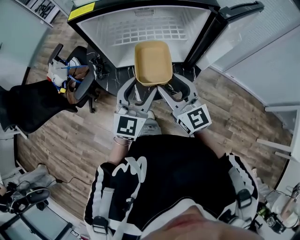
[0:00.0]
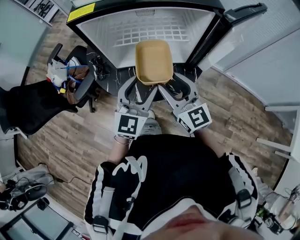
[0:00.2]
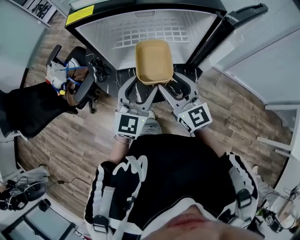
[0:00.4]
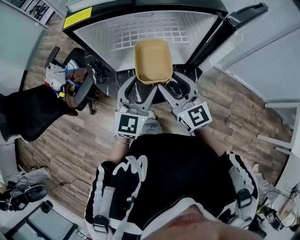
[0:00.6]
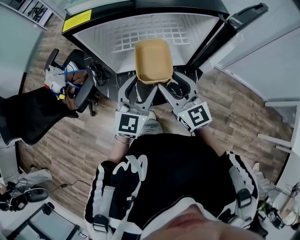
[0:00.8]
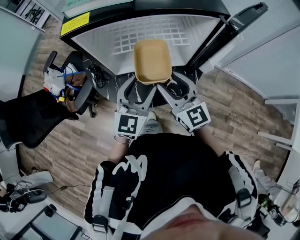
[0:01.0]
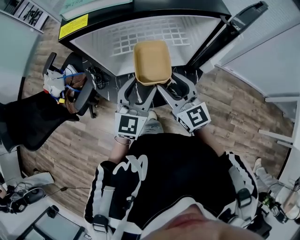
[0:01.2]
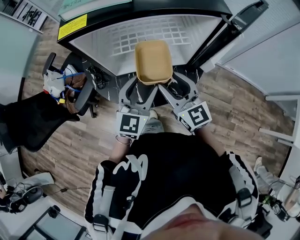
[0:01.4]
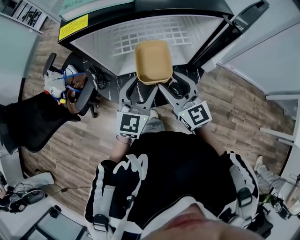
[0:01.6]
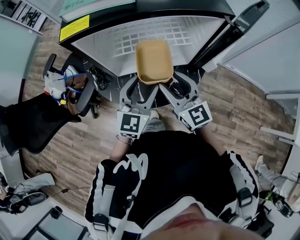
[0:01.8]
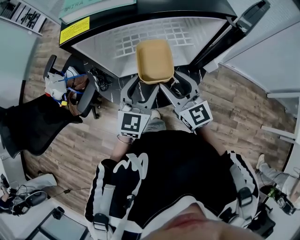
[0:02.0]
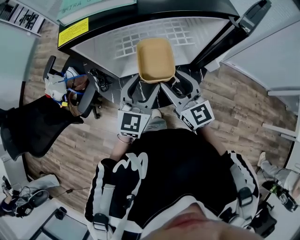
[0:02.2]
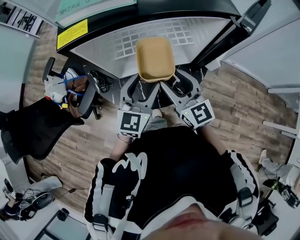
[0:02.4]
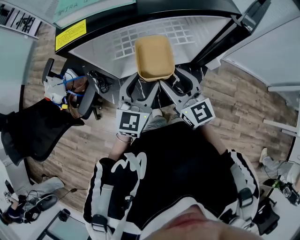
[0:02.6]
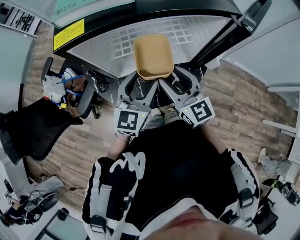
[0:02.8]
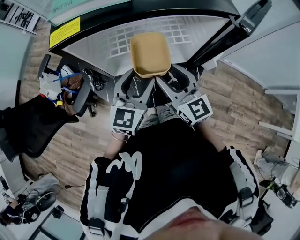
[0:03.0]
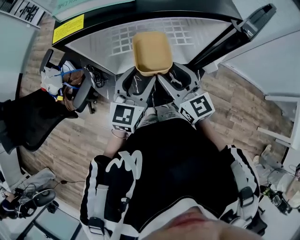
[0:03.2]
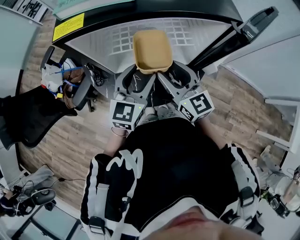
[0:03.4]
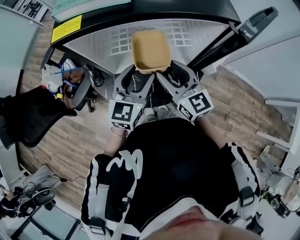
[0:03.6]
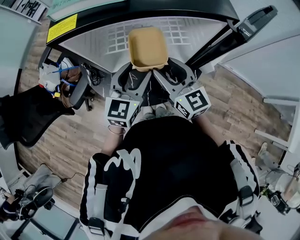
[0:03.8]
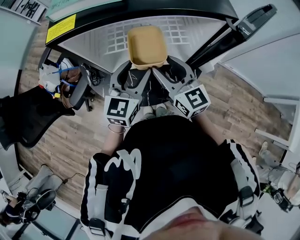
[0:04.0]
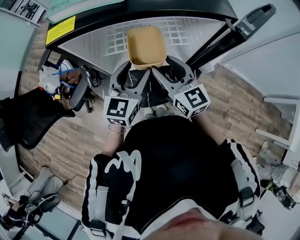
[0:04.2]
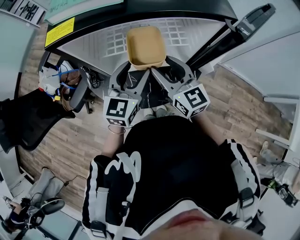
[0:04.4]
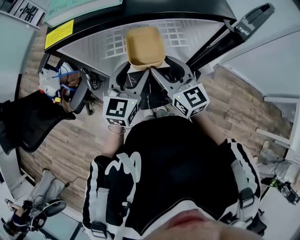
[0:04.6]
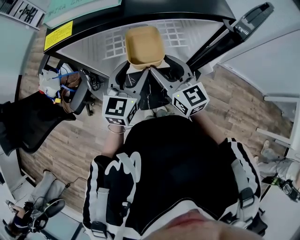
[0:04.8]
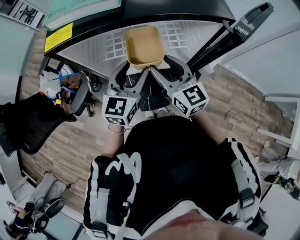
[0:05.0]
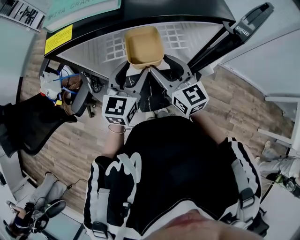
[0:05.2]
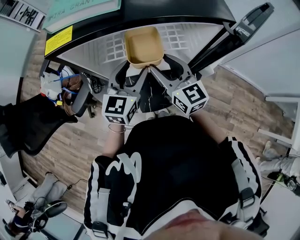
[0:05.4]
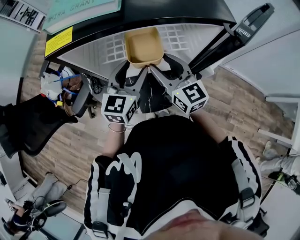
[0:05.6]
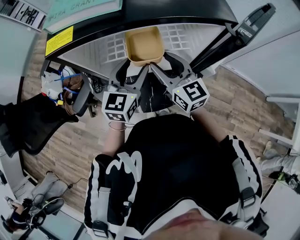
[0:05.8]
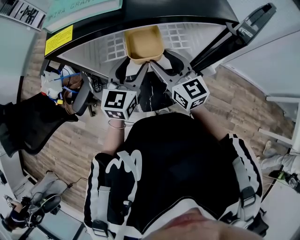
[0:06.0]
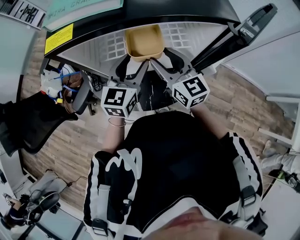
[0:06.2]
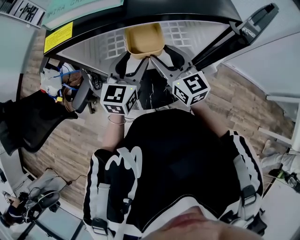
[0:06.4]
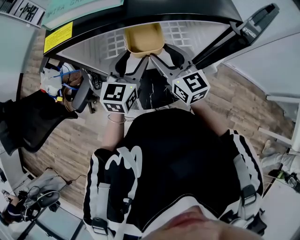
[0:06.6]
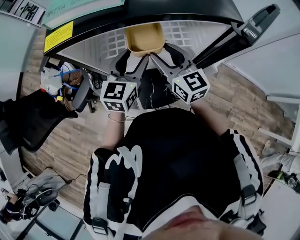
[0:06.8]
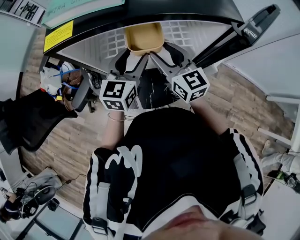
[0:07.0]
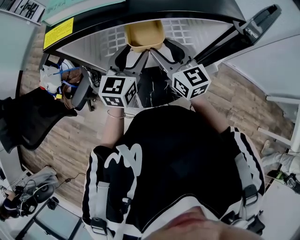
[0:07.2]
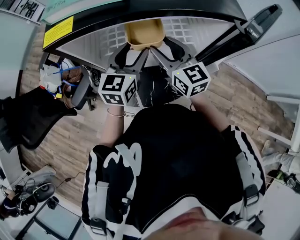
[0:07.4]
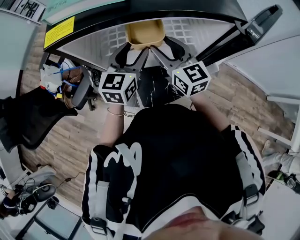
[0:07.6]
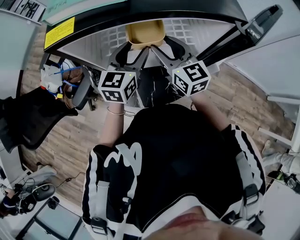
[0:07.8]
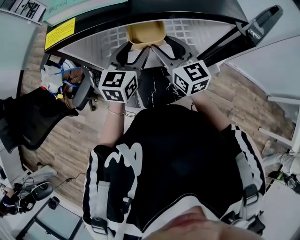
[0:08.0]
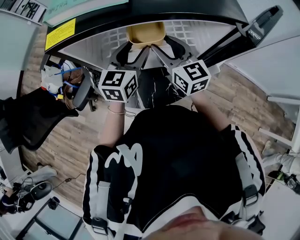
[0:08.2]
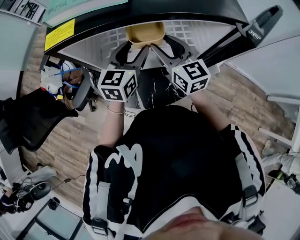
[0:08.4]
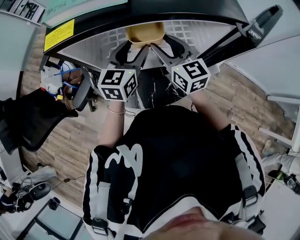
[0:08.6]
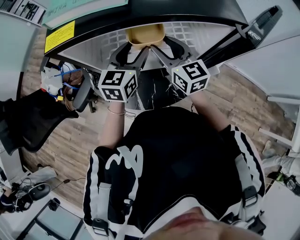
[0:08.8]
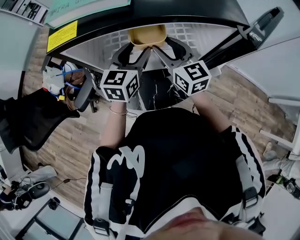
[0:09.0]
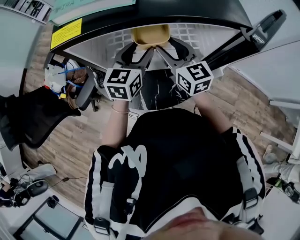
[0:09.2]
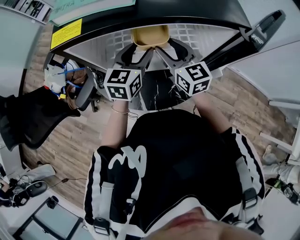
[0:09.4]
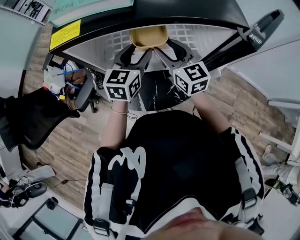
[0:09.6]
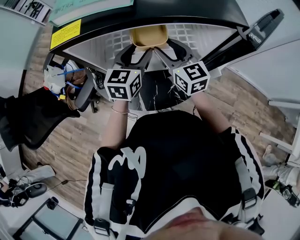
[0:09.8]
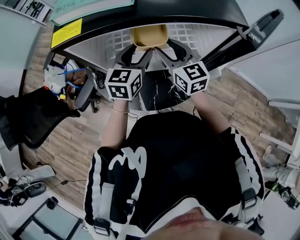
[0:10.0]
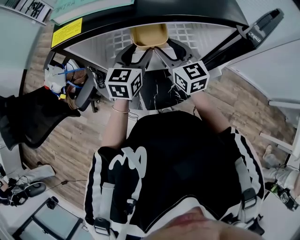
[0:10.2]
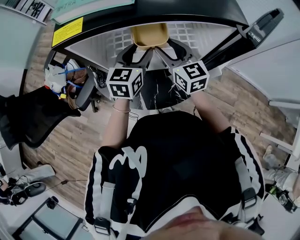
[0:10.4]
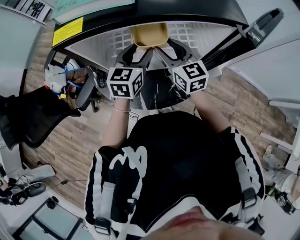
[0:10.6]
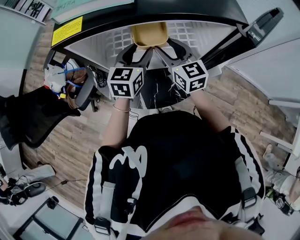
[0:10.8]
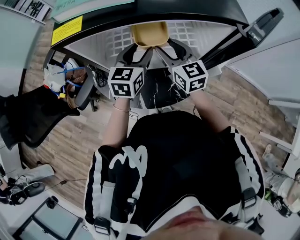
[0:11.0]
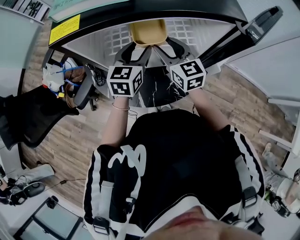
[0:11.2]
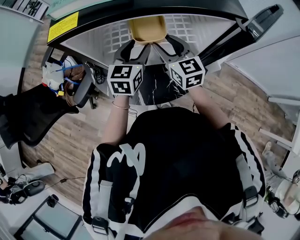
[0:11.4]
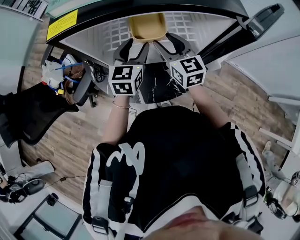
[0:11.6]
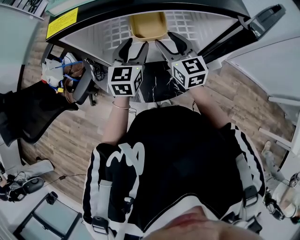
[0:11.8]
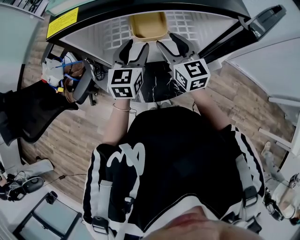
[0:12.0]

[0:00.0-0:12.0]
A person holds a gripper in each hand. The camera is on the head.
0:00.0 to 0:01.6: The grippers both shift forward by some 5 cm.
0:01.6 to 0:03.0: The grippers make only small movements.
0:03.0 to 0:04.4: The grippers make only small movements.
0:04.4 to 0:06.0: There are only small adjustments of the grippers.
0:06.0 to 0:09.0: The grippers move only a little.
0:09.0 to 0:10.4: Both grippers stay put.
0:10.4 to 0:12.0: The grippers make only small movements.

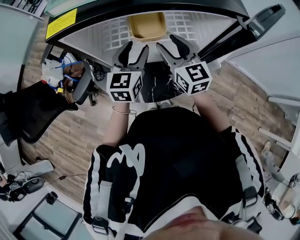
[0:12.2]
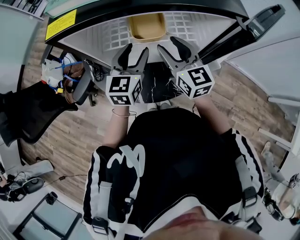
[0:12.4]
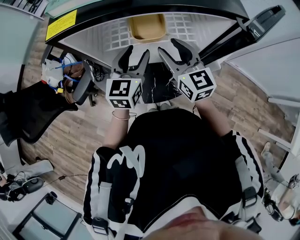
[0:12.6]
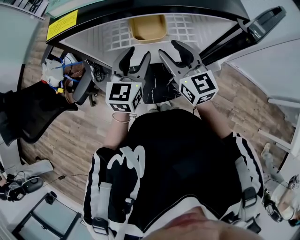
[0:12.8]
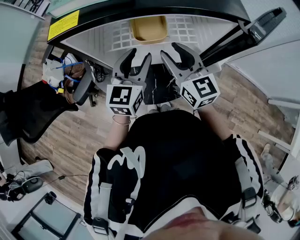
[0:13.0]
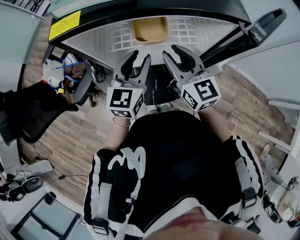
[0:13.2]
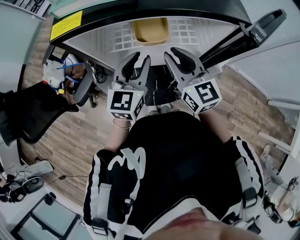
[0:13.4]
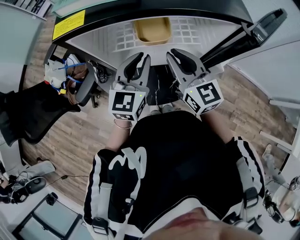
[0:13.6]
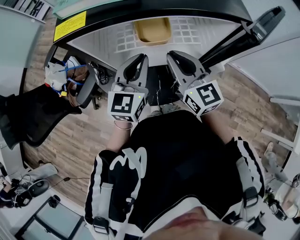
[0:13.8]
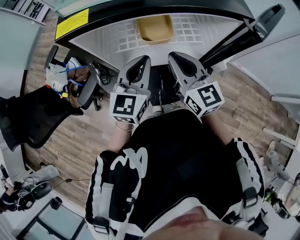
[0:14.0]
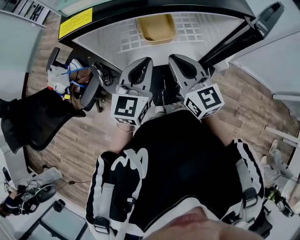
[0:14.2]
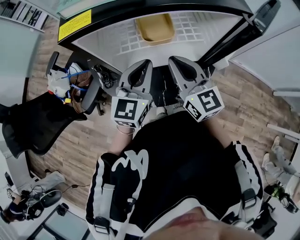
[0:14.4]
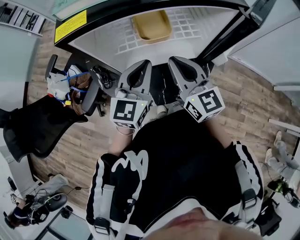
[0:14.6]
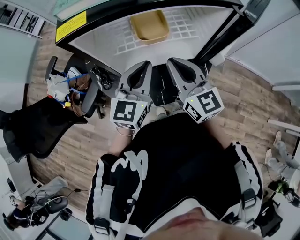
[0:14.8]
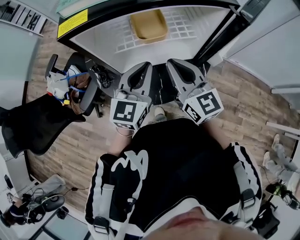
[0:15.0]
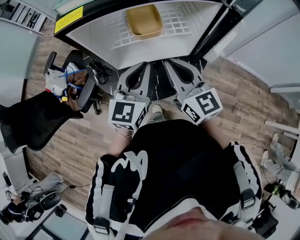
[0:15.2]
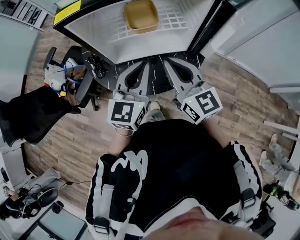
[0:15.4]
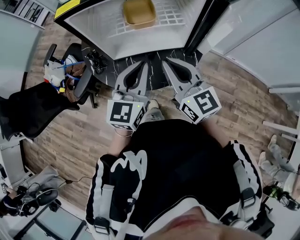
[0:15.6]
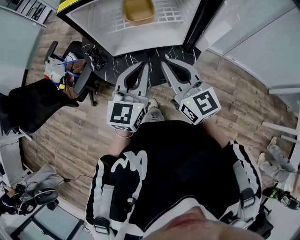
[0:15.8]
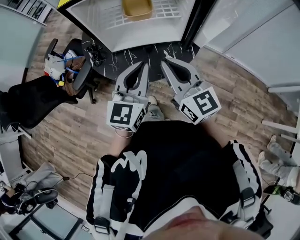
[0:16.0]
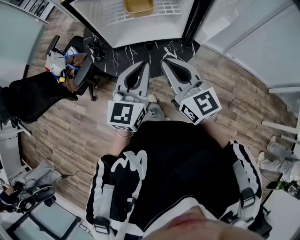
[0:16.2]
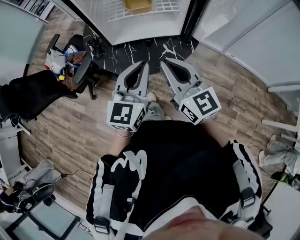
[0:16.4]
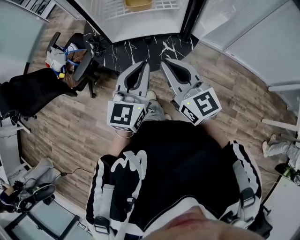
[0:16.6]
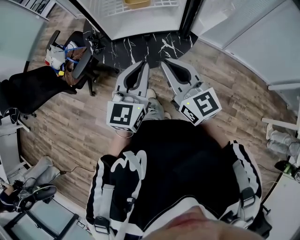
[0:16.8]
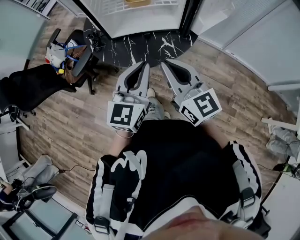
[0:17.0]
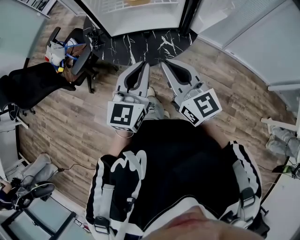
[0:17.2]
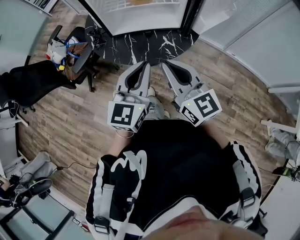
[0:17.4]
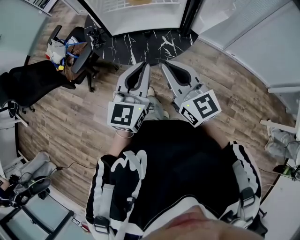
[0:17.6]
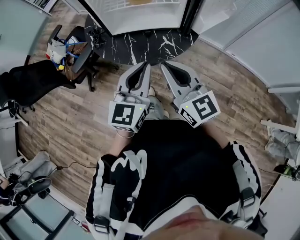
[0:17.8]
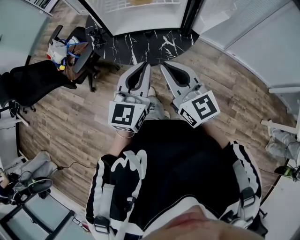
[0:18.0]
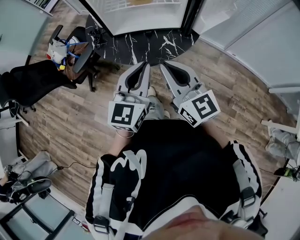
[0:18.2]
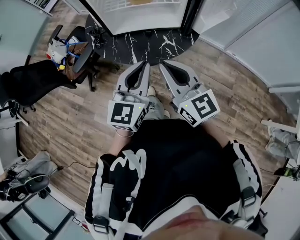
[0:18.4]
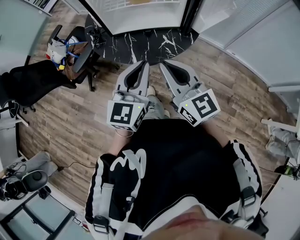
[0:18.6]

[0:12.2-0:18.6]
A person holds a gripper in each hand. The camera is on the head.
0:12.2 to 0:13.8: The left gripper changes place by approximately 5 cm, and closes its fingers. Meanwhile the right gripper travels backward by some 5 cm, and closes.
0:13.8 to 0:15.4: The two grippers go some 10 cm backward.
0:15.4 to 0:17.0: Both grippers travel together backward, some 15 cm.
0:17.0 to 0:18.6: The grippers move only a little.

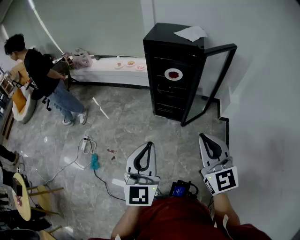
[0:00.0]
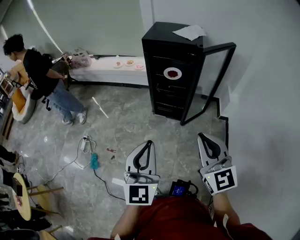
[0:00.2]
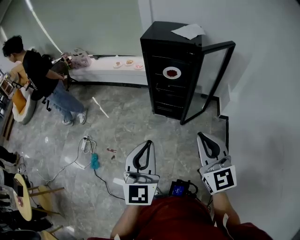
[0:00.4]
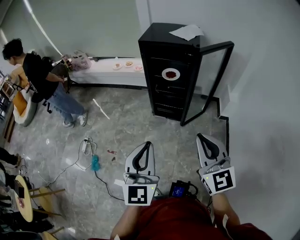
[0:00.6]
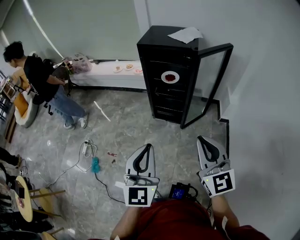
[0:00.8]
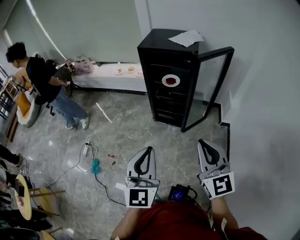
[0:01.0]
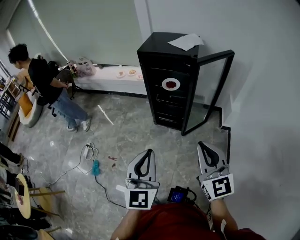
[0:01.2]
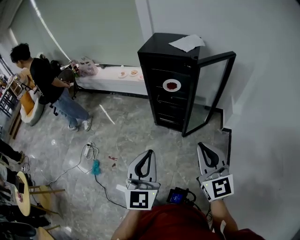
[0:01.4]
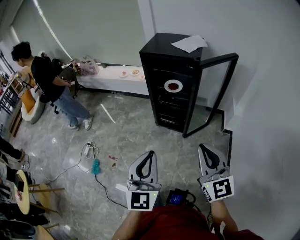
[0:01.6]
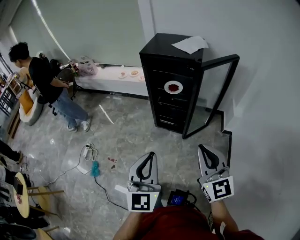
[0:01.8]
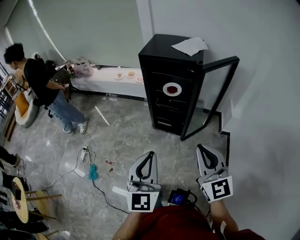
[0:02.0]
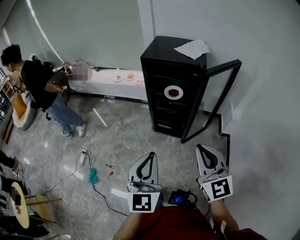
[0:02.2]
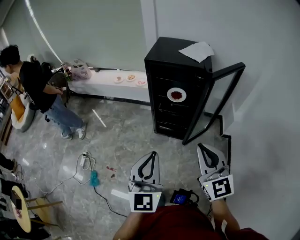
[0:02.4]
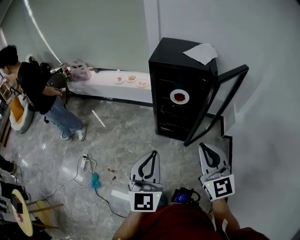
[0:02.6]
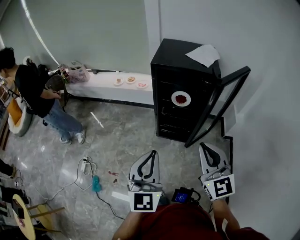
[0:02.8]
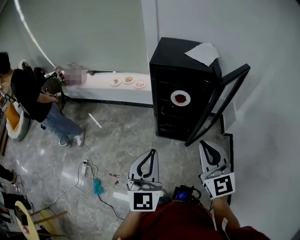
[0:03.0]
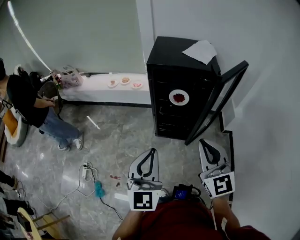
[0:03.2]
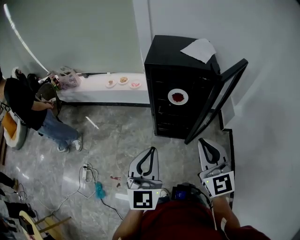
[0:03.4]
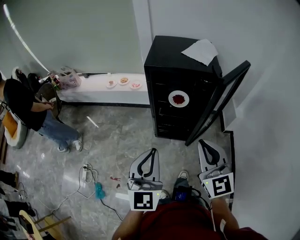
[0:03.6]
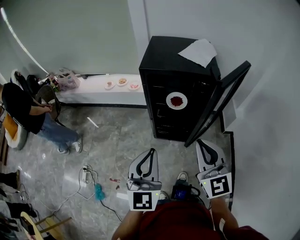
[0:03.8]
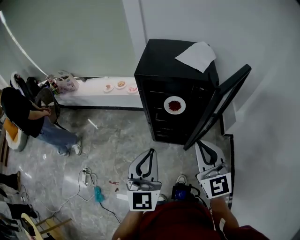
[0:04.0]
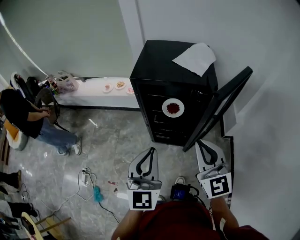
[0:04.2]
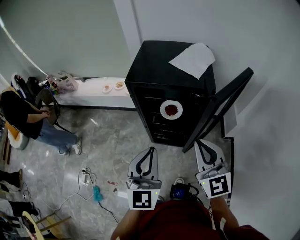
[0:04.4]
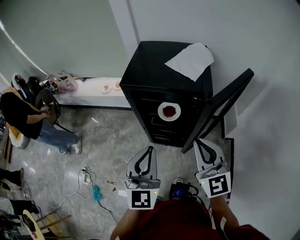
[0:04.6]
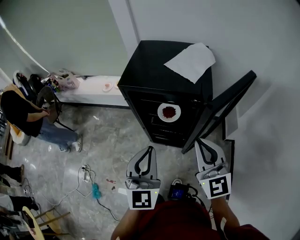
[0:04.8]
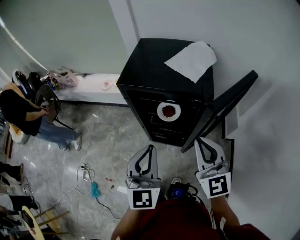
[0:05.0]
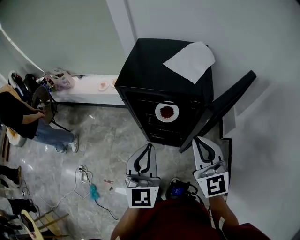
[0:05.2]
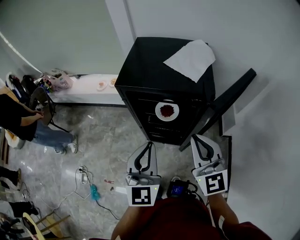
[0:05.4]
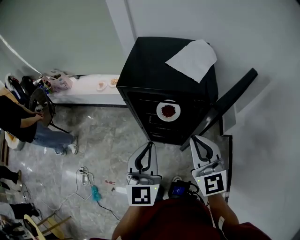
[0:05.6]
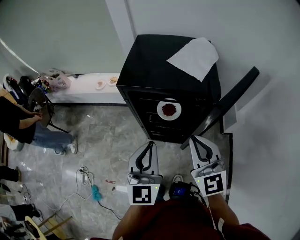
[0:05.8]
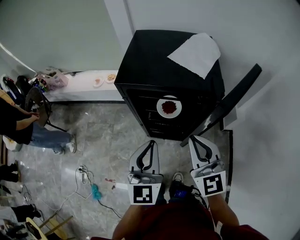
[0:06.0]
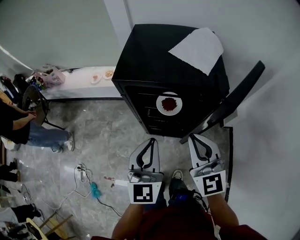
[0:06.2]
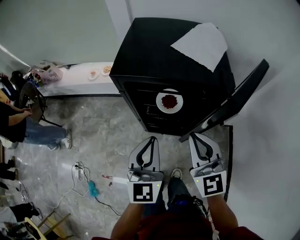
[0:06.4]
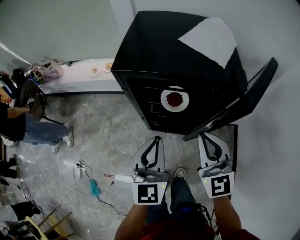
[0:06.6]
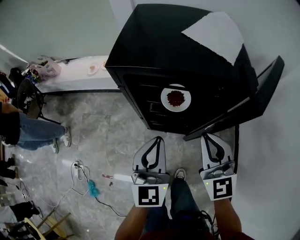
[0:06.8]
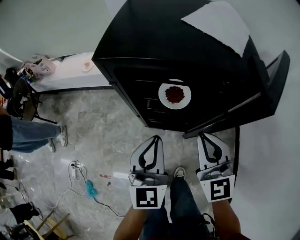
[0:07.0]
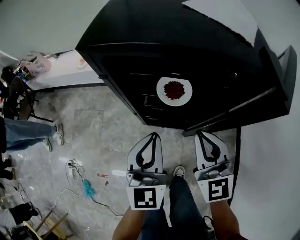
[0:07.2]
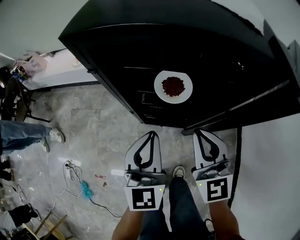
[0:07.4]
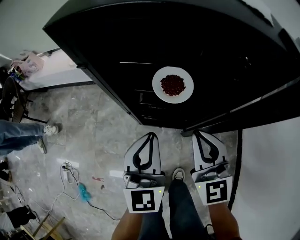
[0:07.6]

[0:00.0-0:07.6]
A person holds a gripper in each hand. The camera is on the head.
0:00.0 to 0:01.6: Both grippers travel together to the right, some 10 cm.
0:01.6 to 0:03.0: The grippers both shift forward and to the left by some 25 cm.
0:03.0 to 0:04.6: Both grippers travel together forward and to the right, approximately 20 cm.
0:04.6 to 0:06.0: Both grippers travel together forward, about 5 cm.
0:06.0 to 0:07.6: The grippers both shift downward by roughly 25 cm.
